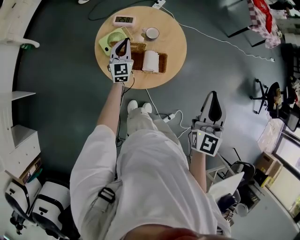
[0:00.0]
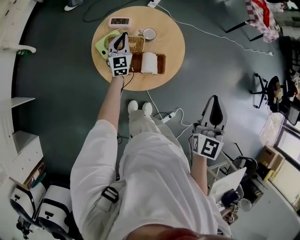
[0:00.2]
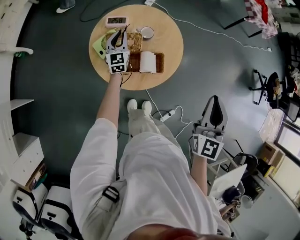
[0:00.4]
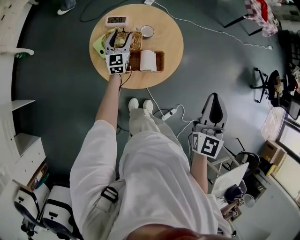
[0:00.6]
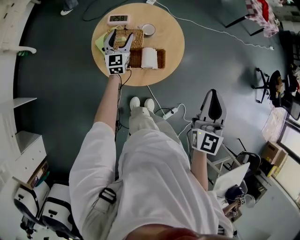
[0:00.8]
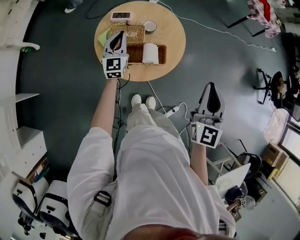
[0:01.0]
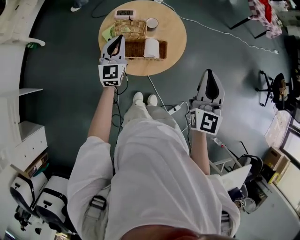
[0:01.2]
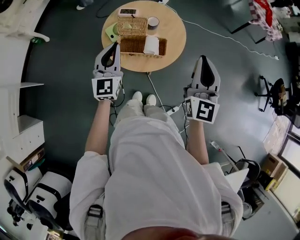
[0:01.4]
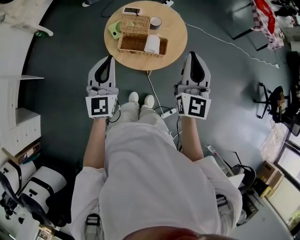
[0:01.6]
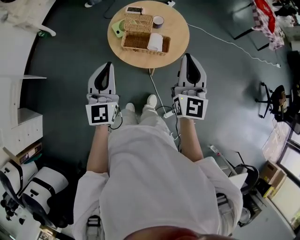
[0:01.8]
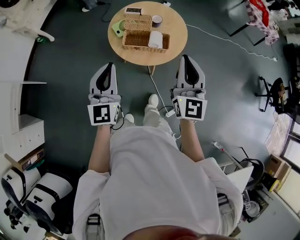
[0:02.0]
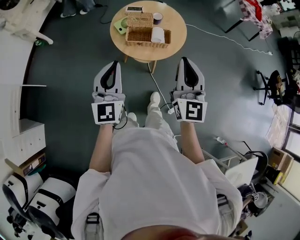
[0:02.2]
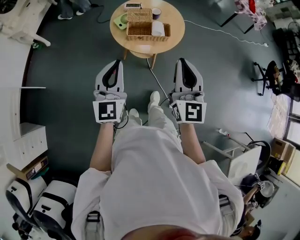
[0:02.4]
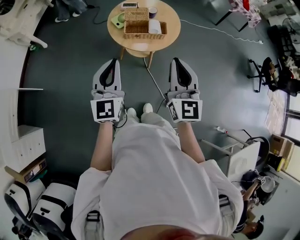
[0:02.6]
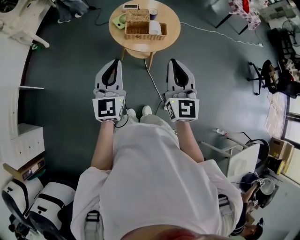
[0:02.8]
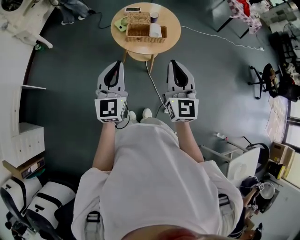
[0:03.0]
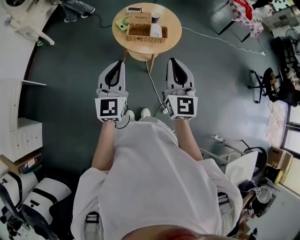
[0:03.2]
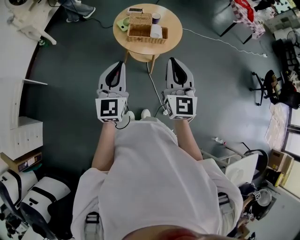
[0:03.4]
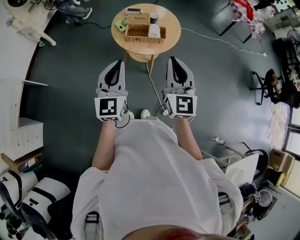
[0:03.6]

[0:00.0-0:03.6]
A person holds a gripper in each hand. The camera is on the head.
0:00.0 to 0:01.8: The left gripper goes approximately 40 cm backward and upward, and opens, then closes again. Meanwhile the right gripper moves backward and to the left, some 10 cm, and turns by approximately 20 degrees.
0:01.8 to 0:03.6: The grippers both shift backward by about 20 cm.

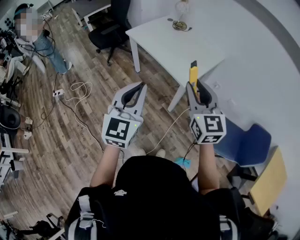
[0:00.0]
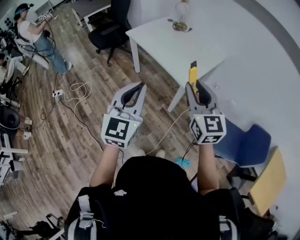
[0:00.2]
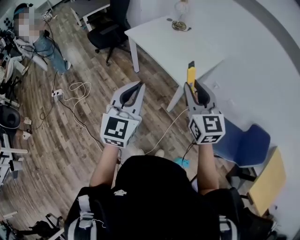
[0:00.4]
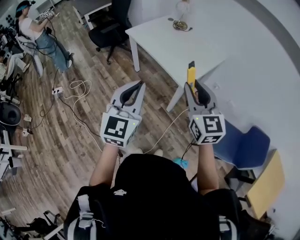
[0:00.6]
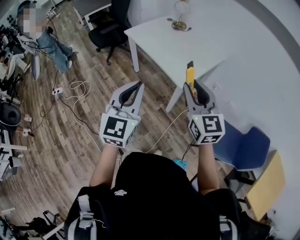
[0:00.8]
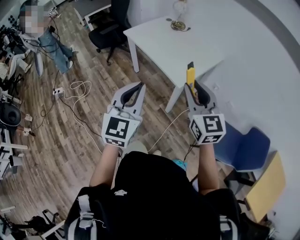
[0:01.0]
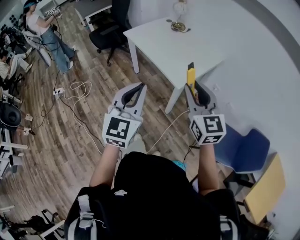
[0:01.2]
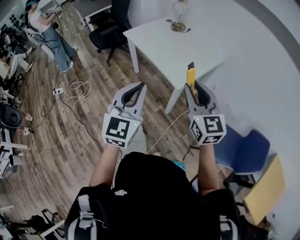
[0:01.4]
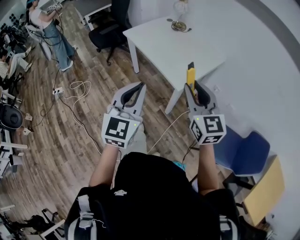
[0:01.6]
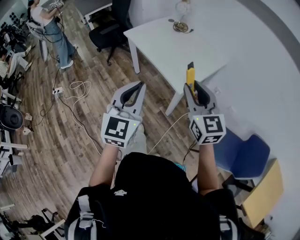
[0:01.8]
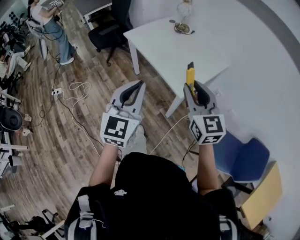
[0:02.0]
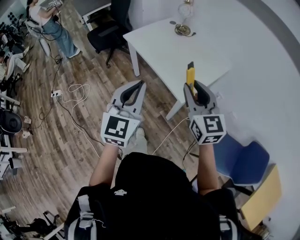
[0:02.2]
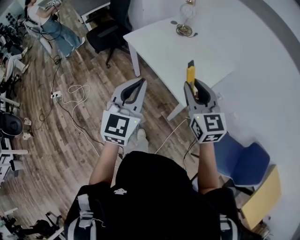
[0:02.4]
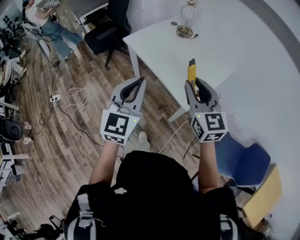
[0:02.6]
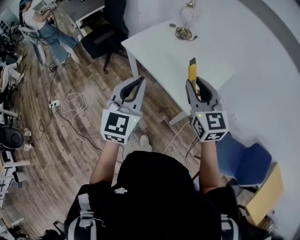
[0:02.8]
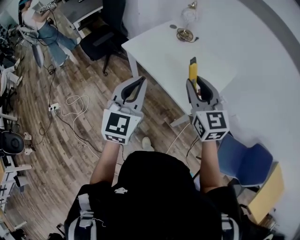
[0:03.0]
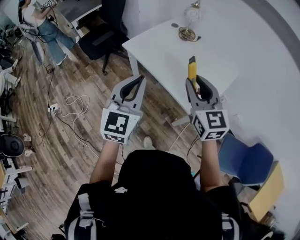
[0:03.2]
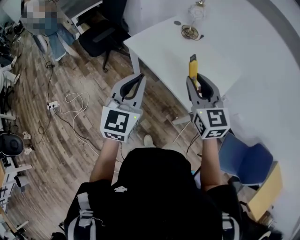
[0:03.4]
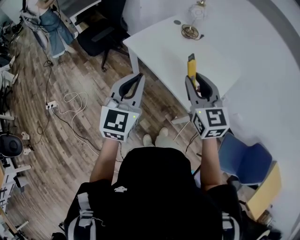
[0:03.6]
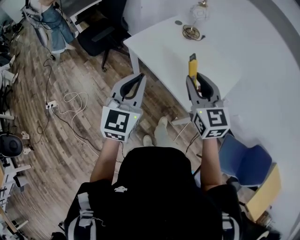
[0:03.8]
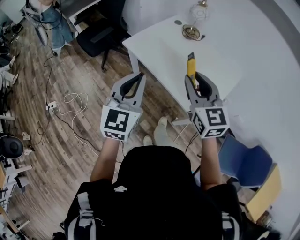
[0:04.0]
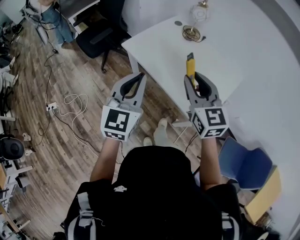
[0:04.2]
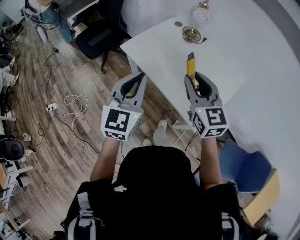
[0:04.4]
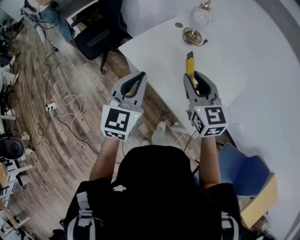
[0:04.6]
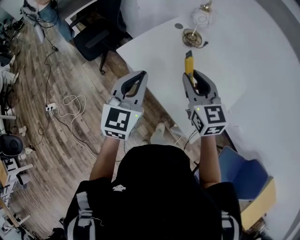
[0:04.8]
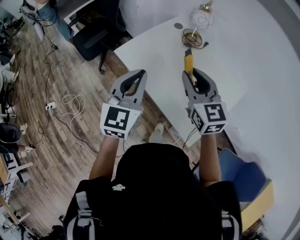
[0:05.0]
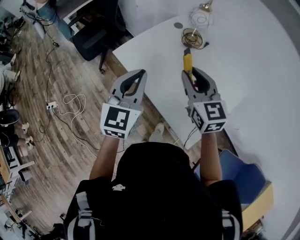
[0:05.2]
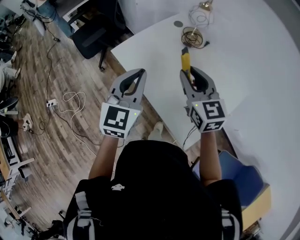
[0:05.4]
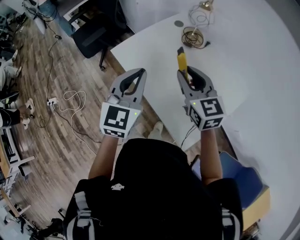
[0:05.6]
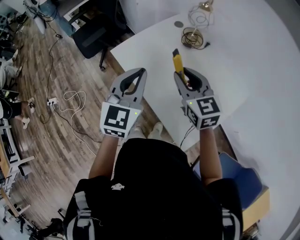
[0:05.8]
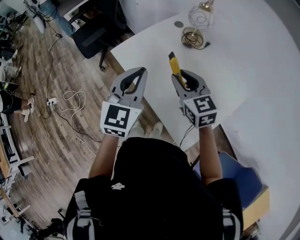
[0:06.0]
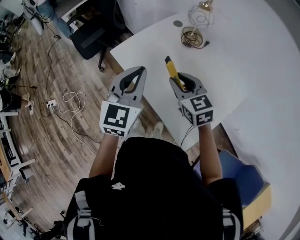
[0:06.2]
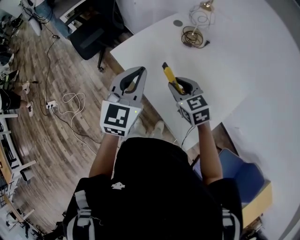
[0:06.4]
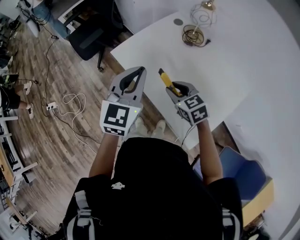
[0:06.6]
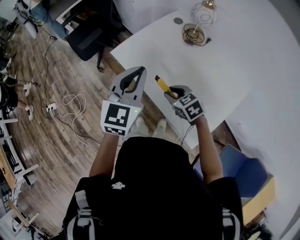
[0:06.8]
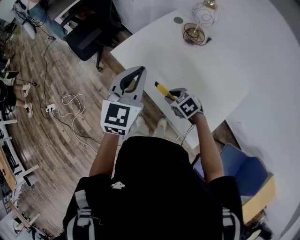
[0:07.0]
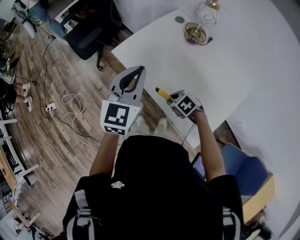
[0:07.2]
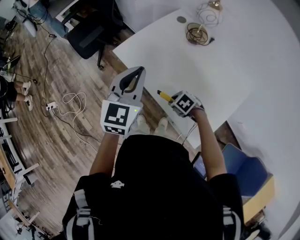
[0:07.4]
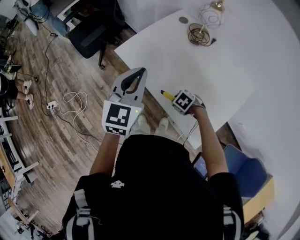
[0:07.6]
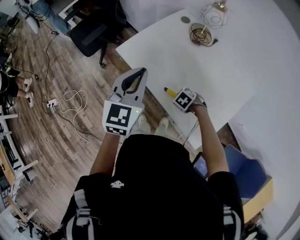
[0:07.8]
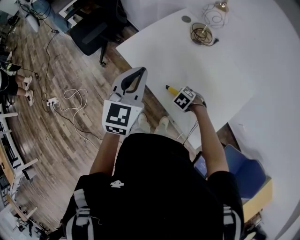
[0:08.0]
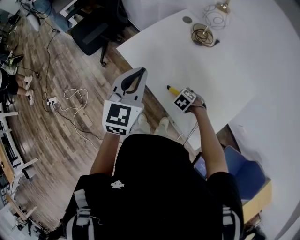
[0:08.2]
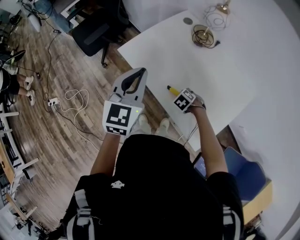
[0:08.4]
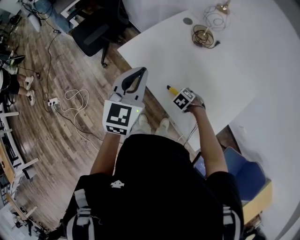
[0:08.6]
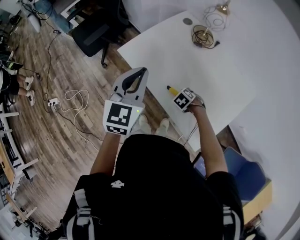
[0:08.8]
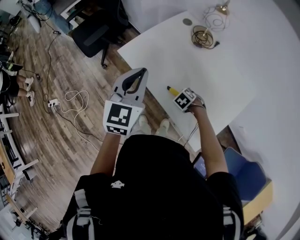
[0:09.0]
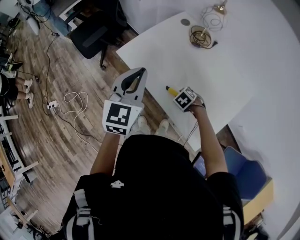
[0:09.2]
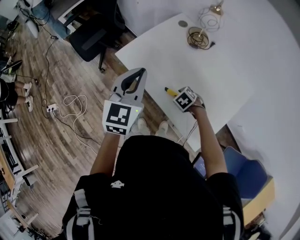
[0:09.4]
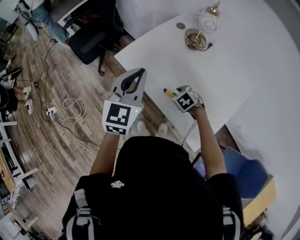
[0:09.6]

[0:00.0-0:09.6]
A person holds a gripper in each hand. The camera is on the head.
0:00.0 to 0:01.6: The two grippers go roughly 5 cm to the right.
0:01.6 to 0:03.2: The grippers both shift forward and to the left by approximately 30 cm.
0:03.2 to 0:04.8: Both grippers move forward, about 20 cm.
0:04.8 to 0:06.4: The left gripper moves forward, some 10 cm. The right gripper travels downward and forward by some 15 cm, and turns by roughly 30 degrees.
0:06.4 to 0:08.0: The left gripper shifts by roughly 5 cm; the right gripper heads downward, covering about 25 cm, and points its fingers roughly 50 degrees further downward.
0:08.0 to 0:09.6: The right gripper is displaced upward by about 5 cm.

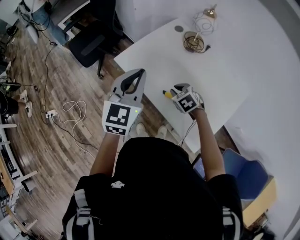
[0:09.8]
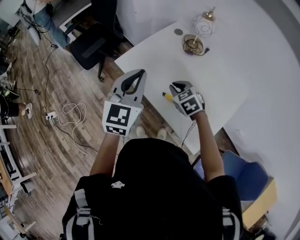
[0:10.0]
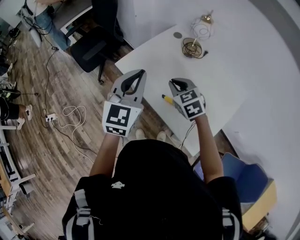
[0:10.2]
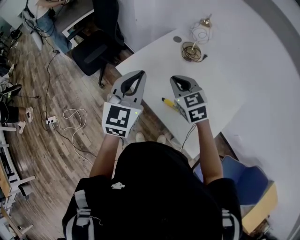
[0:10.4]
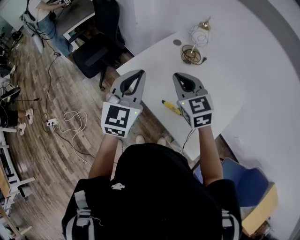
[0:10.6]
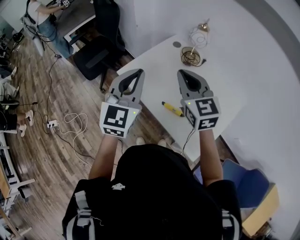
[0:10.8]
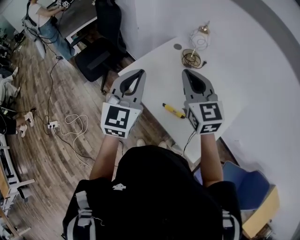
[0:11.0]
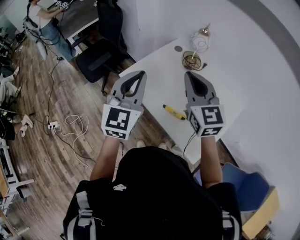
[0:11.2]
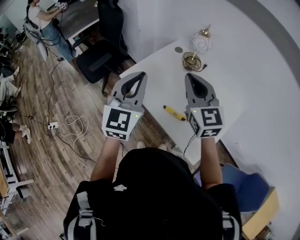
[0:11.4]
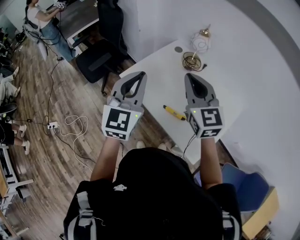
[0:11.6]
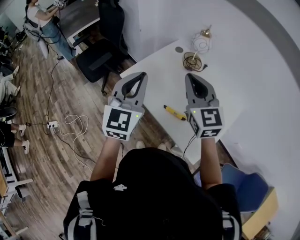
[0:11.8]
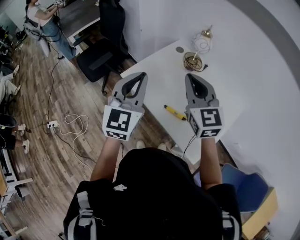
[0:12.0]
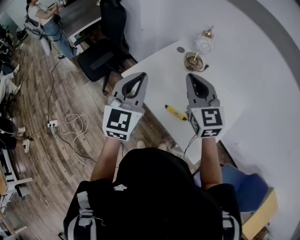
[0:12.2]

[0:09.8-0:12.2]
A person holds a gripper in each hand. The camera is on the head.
0:09.8 to 0:11.0: The right gripper heads upward, covering some 30 cm, and tips its fingers upward by some 50 degrees; the left gripper shifts roughly 10 cm upward.
0:11.0 to 0:12.2: The grippers make only small movements.

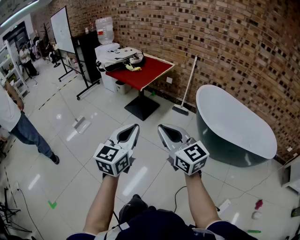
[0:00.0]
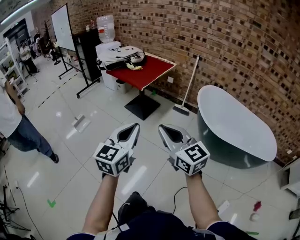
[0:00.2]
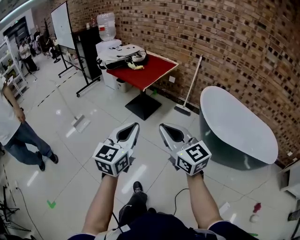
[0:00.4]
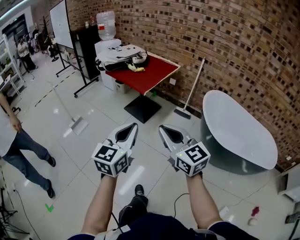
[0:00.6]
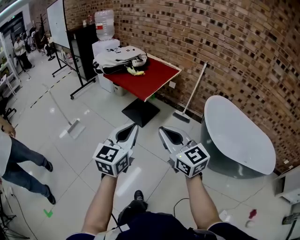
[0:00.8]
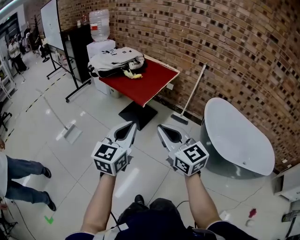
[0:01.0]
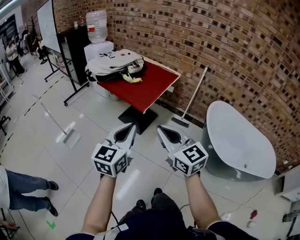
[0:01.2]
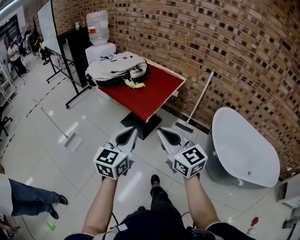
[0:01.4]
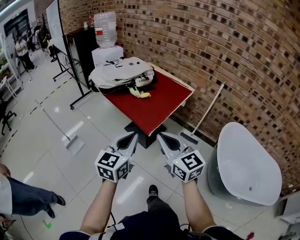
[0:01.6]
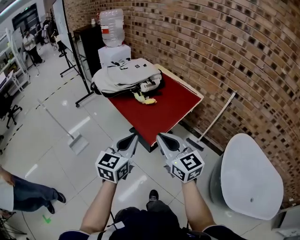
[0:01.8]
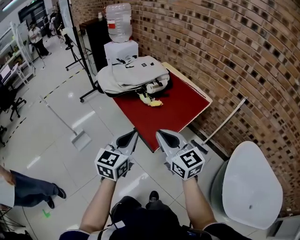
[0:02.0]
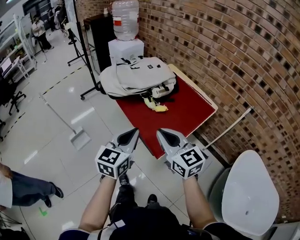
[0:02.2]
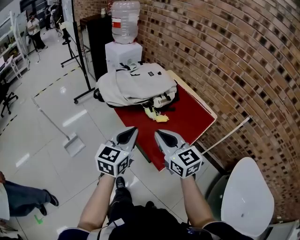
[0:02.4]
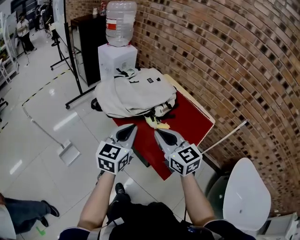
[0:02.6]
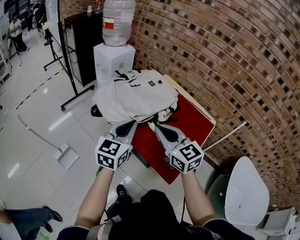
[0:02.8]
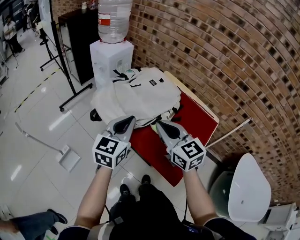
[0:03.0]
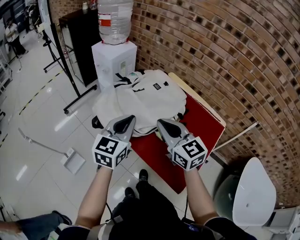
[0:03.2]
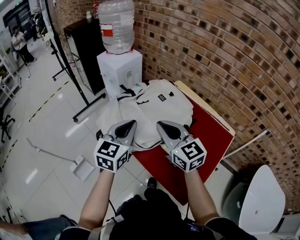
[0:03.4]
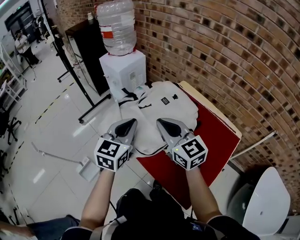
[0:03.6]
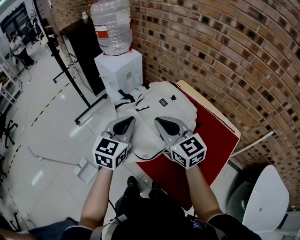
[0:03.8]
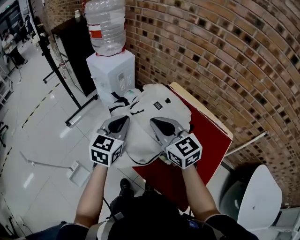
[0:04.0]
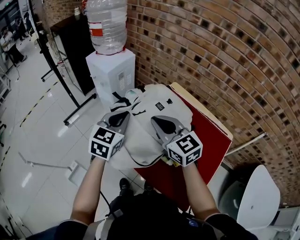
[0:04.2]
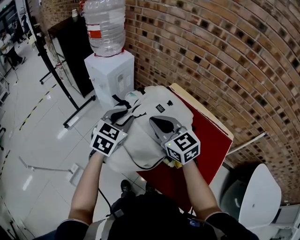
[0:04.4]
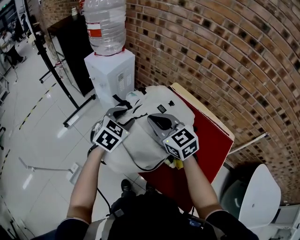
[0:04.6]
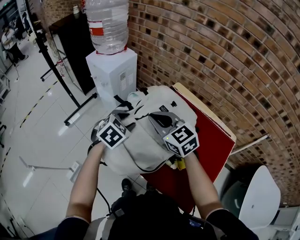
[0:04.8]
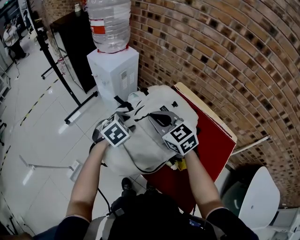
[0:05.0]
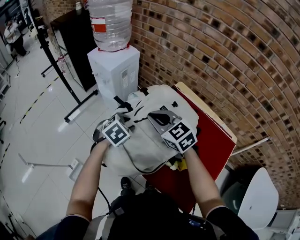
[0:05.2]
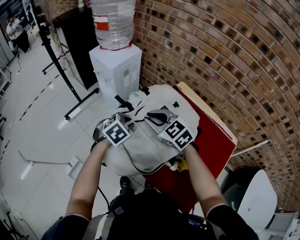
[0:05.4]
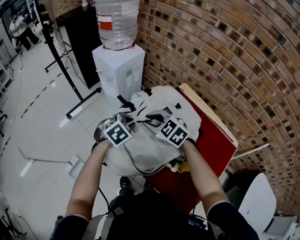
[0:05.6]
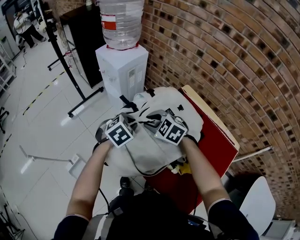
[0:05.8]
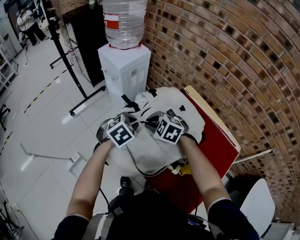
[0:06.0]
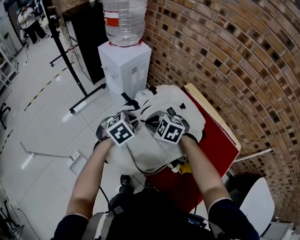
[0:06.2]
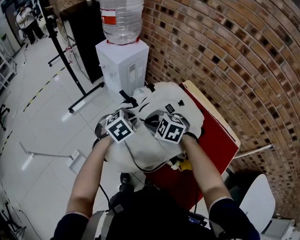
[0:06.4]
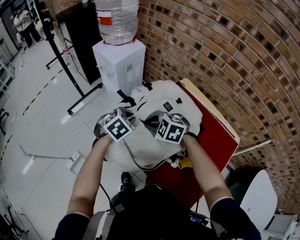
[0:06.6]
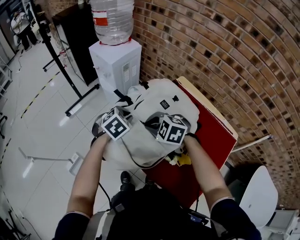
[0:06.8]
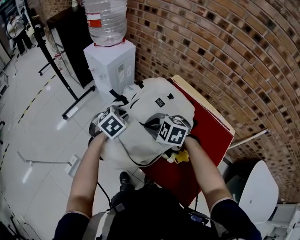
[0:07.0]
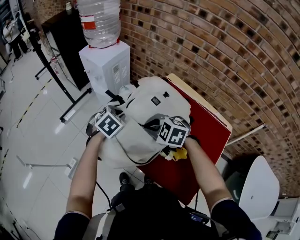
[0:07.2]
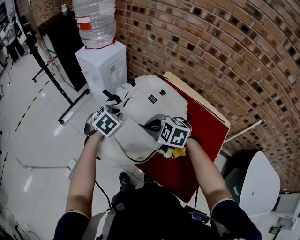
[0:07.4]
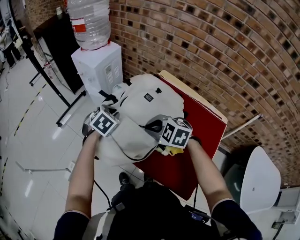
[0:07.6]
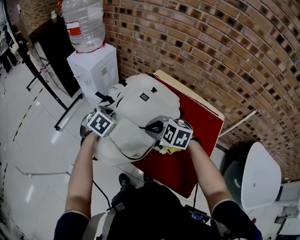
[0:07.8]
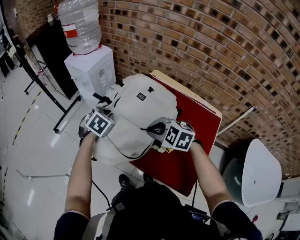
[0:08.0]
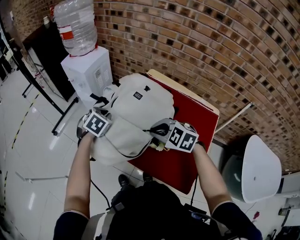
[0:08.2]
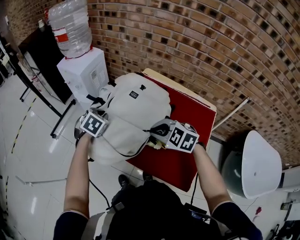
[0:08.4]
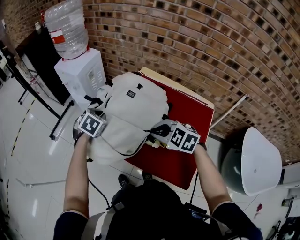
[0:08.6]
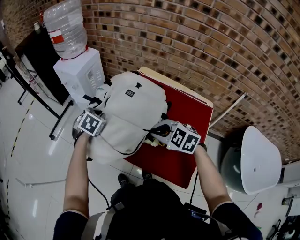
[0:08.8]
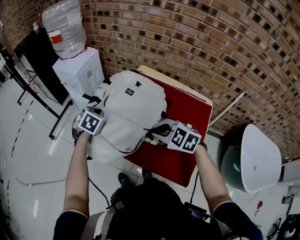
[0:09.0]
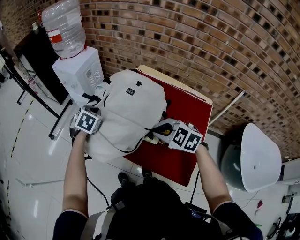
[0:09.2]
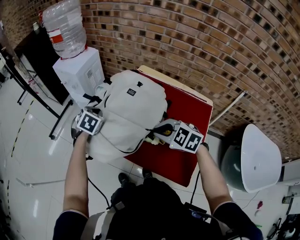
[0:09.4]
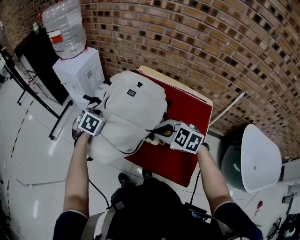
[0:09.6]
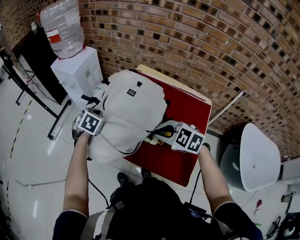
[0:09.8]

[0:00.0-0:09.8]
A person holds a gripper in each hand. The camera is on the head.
0:00.0 to 0:01.4: Both grippers travel together forward, approximately 35 cm.
0:01.4 to 0:02.8: Both grippers are carried forward, some 50 cm.
0:02.8 to 0:04.2: Both grippers move forward, some 25 cm.
0:04.2 to 0:05.6: The left gripper shifts some 15 cm downward, tilts its fingers roughly 30 degrees downward, and opens and closes again. Meanwhile the right gripper travels downward, to the left and forward by roughly 15 cm, rotates roughly 40 degrees, and opens its fingers.
0:05.6 to 0:07.0: The right gripper moves backward, roughly 5 cm.
0:07.0 to 0:08.4: The right gripper goes about 15 cm backward and to the right.
0:08.4 to 0:09.8: The grippers make only small movements.
